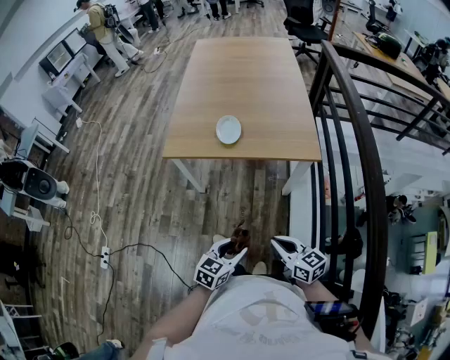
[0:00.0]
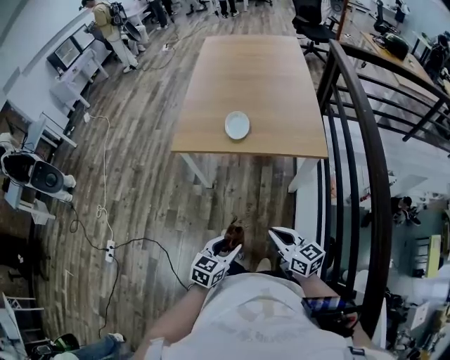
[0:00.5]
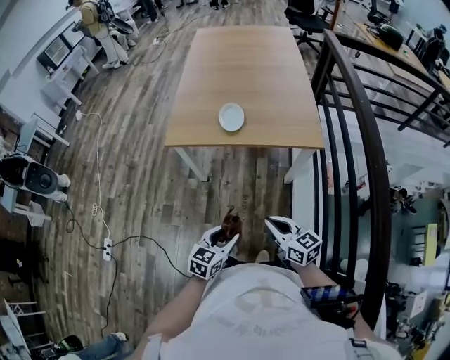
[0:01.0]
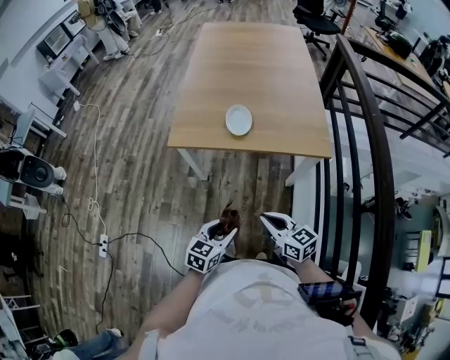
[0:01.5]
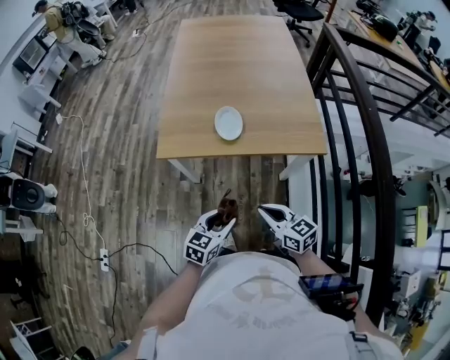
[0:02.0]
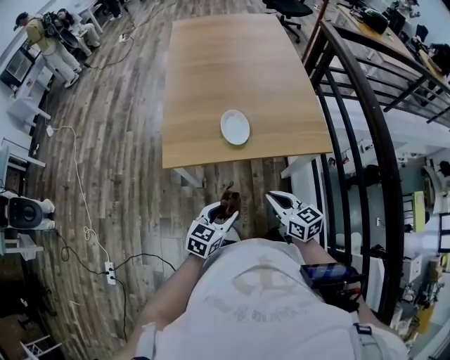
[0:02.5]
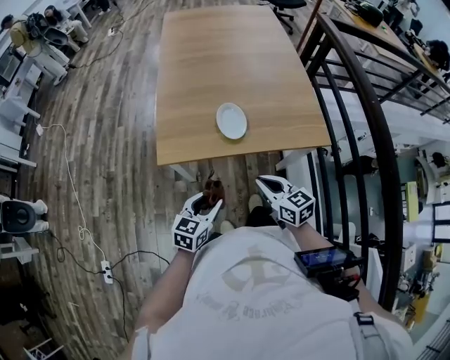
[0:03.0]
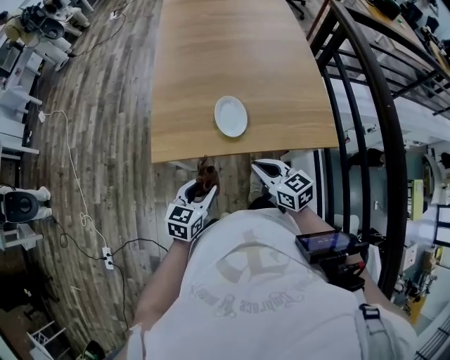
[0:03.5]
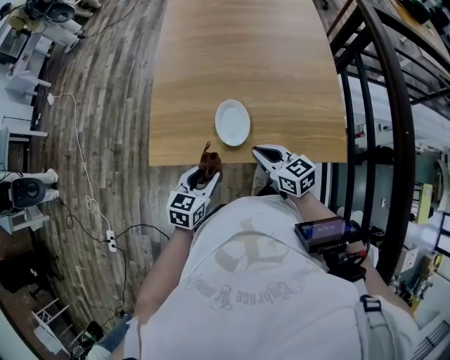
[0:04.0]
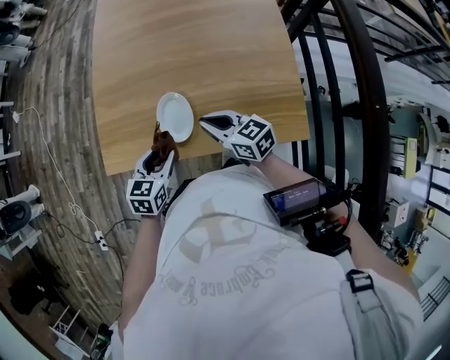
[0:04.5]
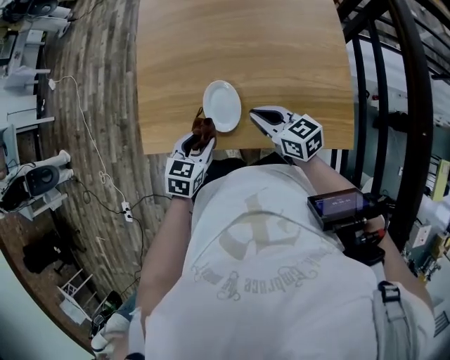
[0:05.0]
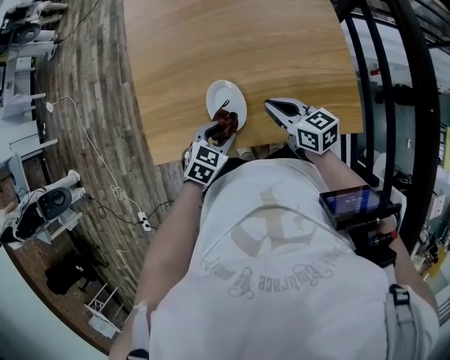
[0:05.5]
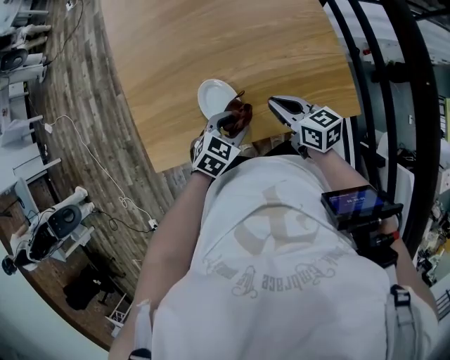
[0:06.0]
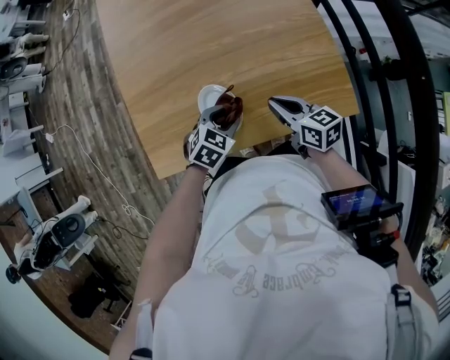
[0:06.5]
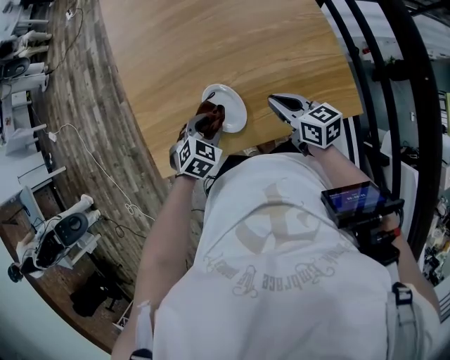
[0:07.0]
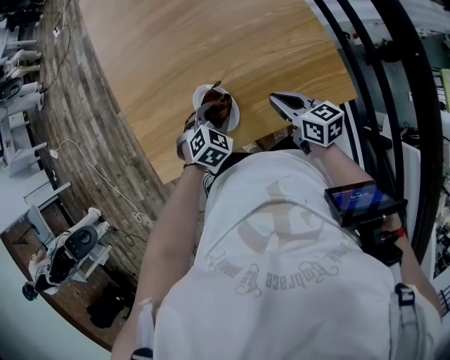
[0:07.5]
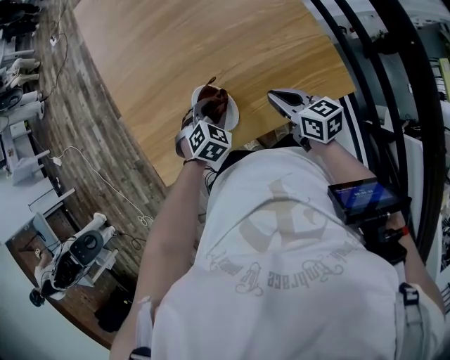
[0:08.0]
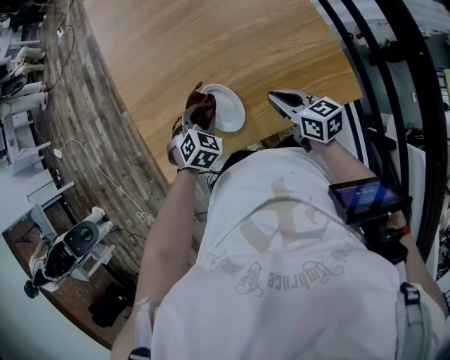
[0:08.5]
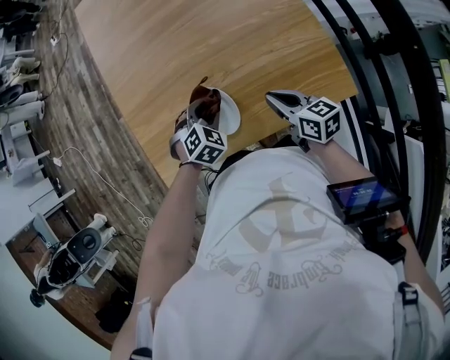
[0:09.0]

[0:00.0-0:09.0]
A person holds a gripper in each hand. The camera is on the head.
0:00.0 to 0:02.0: The grippers both shift forward and to the left by about 15 cm.
0:02.0 to 0:04.5: The grippers both shift forward by roughly 30 cm.
0:04.5 to 0:07.0: The right gripper ends up roughly 10 cm from where it was, and rotates approximately 30 degrees. The left gripper ends up roughly 10 cm from where it was, and rolls clockwise, seen from behind, by approximately 40 degrees.
0:07.0 to 0:09.0: The left gripper goes left and right, about 5 cm each way, reversing 2 times.

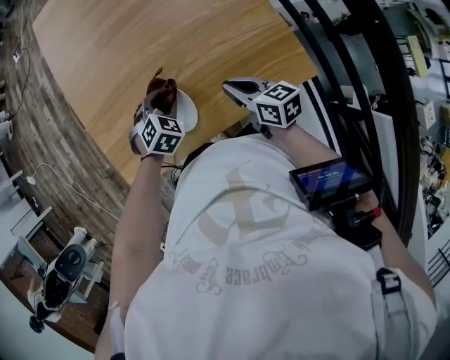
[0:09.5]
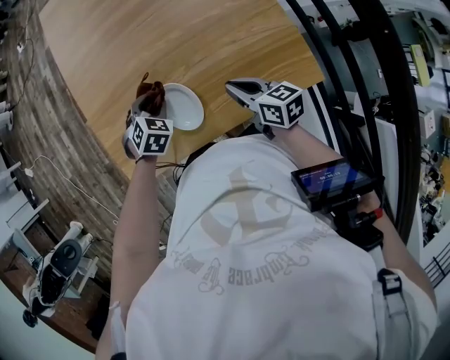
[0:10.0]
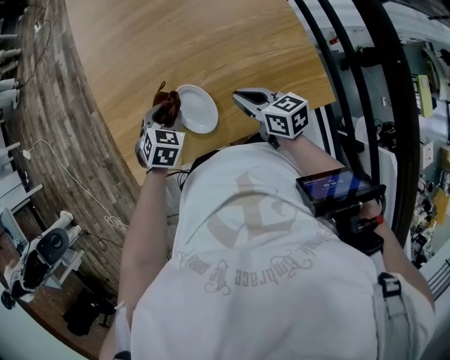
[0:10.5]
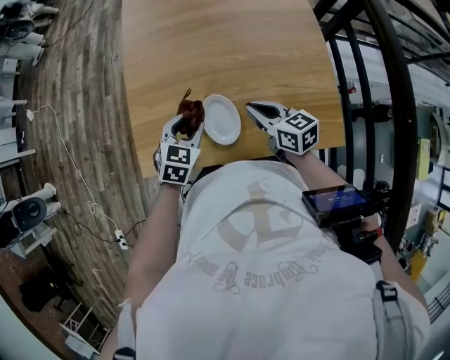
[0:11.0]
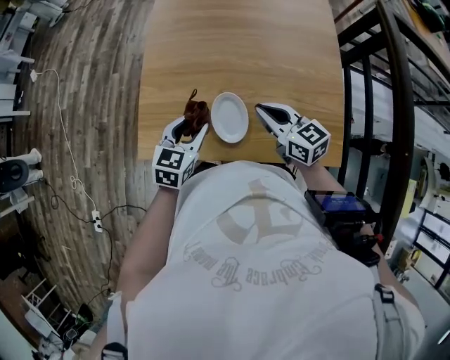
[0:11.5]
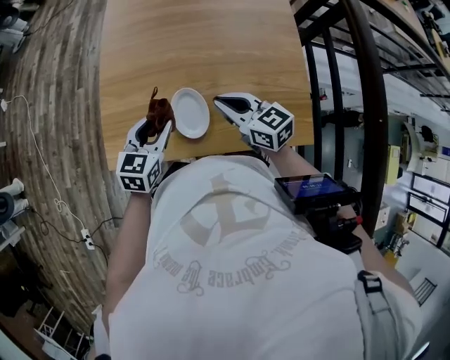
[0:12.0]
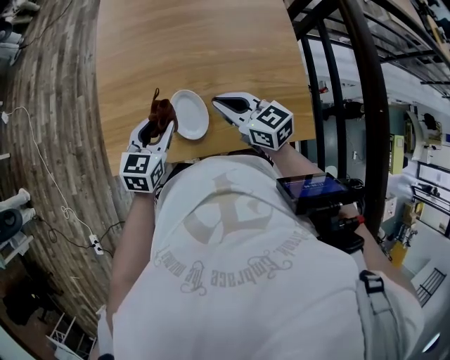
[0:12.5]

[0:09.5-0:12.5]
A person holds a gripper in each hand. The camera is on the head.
0:09.5 to 0:11.0: The right gripper is displaced to the left and forward by some 10 cm, and turns by roughly 20 degrees; the left gripper shifts approximately 10 cm to the left and upward, and swivels roughly 40 degrees.

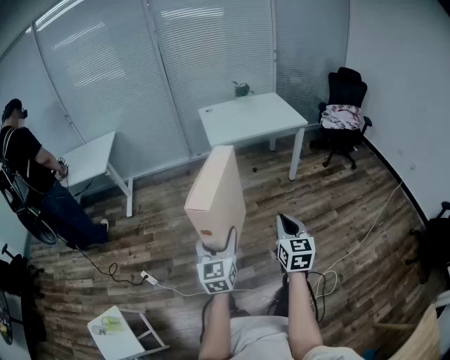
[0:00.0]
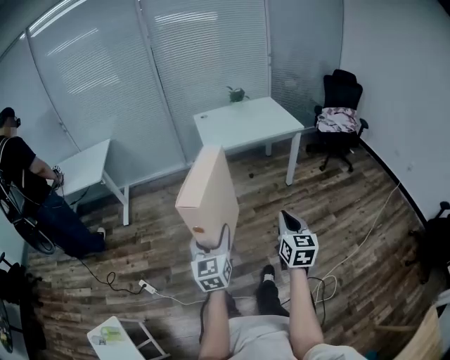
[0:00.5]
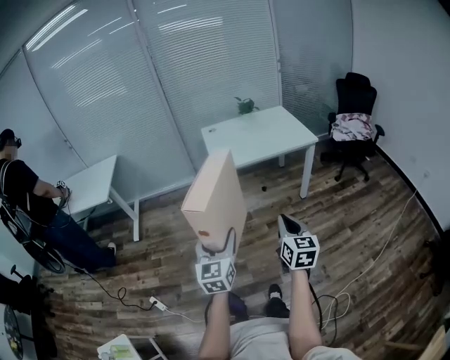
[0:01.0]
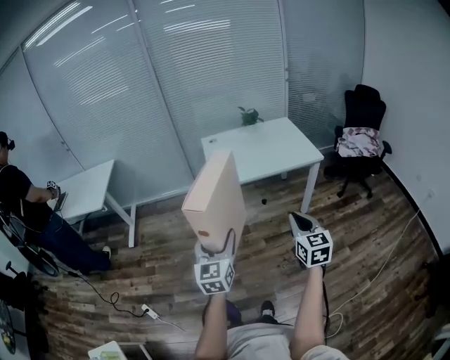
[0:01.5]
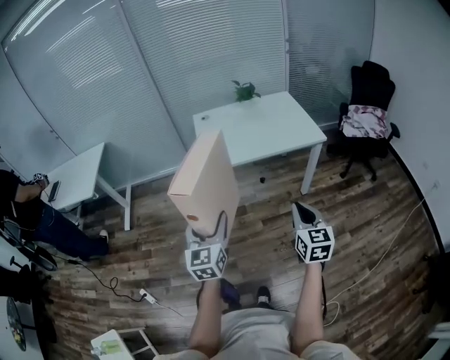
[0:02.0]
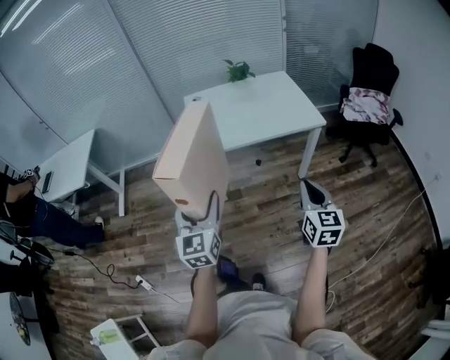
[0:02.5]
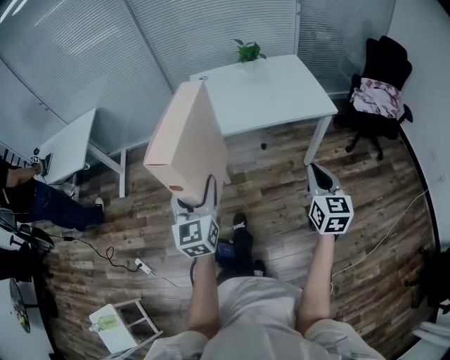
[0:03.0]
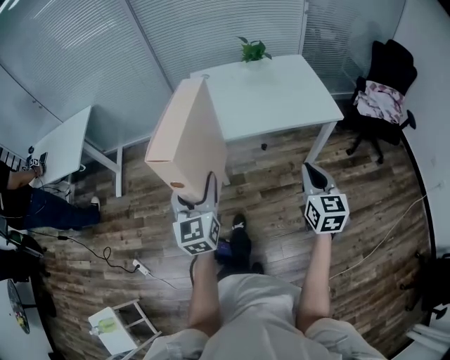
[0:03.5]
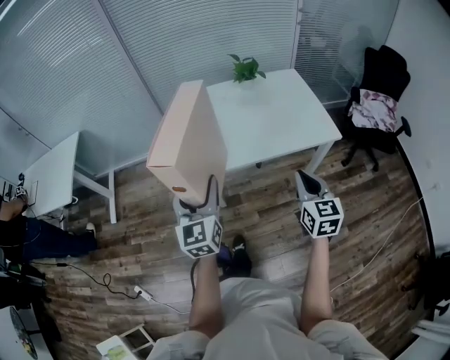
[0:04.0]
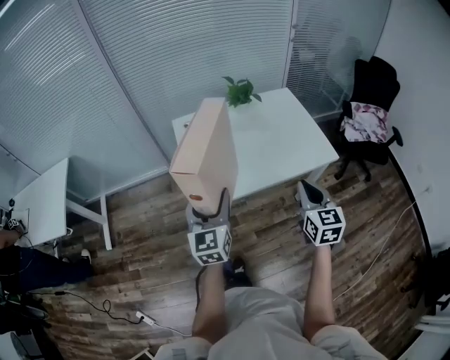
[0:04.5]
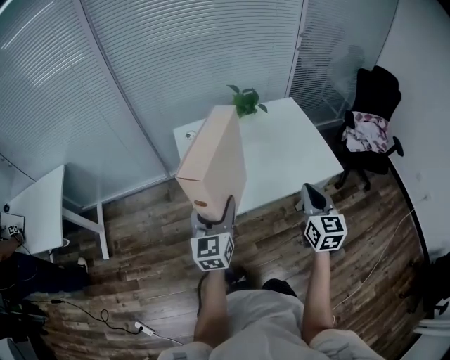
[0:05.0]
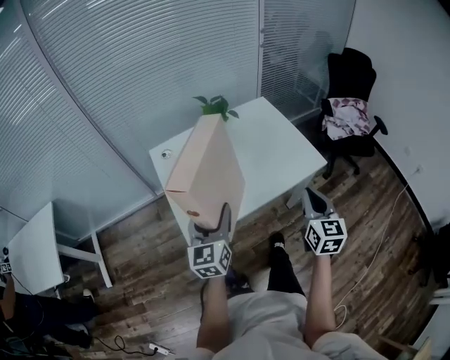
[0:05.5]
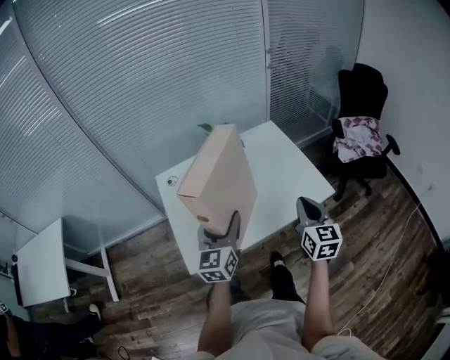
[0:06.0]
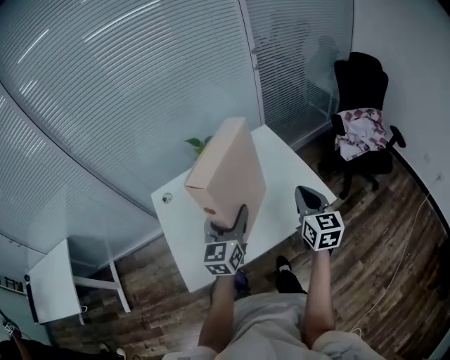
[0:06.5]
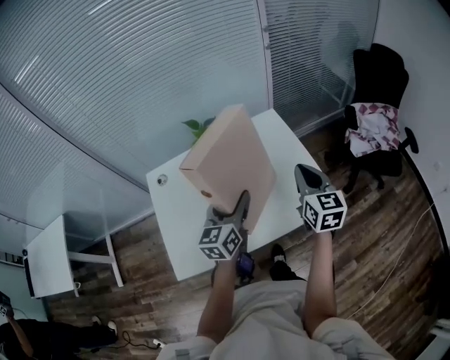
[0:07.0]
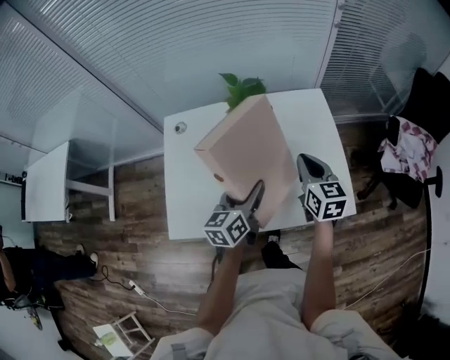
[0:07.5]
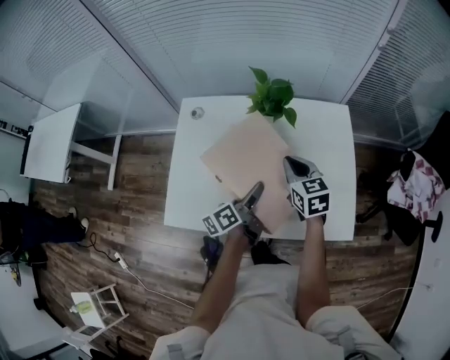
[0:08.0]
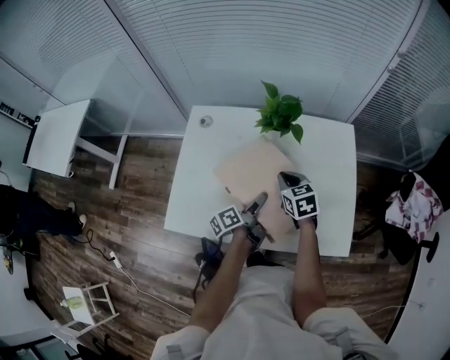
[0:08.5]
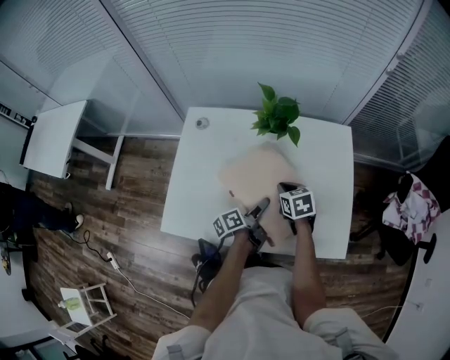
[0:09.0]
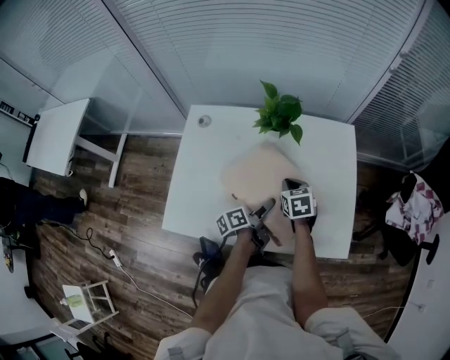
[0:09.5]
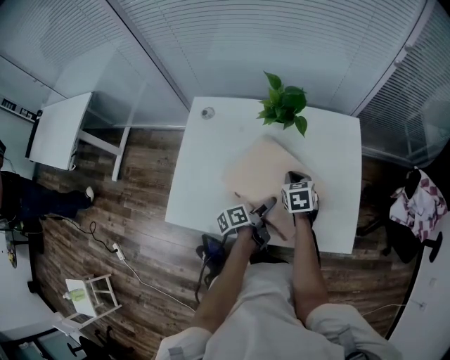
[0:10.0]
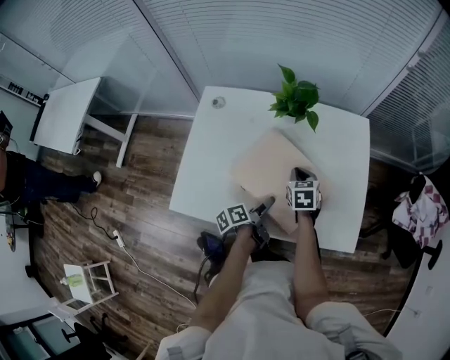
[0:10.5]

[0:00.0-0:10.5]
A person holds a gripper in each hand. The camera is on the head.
0:00.0 to 0:02.0: The grippers both shift forward by approximately 35 cm.
0:02.0 to 0:04.0: The grippers both shift forward by roughly 25 cm.
0:04.0 to 0:06.5: The right gripper shifts roughly 30 cm forward; the left gripper heads forward and to the right, covering about 40 cm, and changes its angle by some 30 degrees.
0:06.5 to 0:08.5: The right gripper changes place by roughly 30 cm, and rotates about 60 degrees, while the left gripper heads downward, covering some 25 cm, and twists about 80 degrees counterclockwise, seen from behind.
0:08.5 to 0:10.5: The right gripper is displaced downward by some 5 cm; the left gripper heads backward and downward, covering about 10 cm.

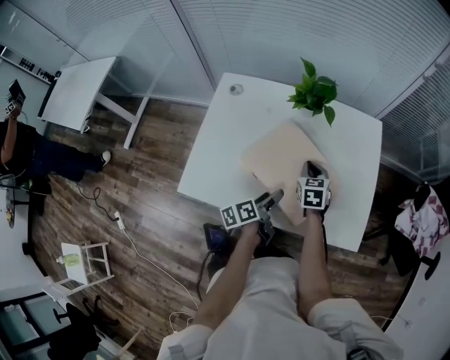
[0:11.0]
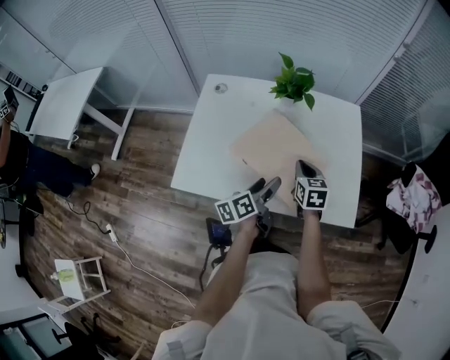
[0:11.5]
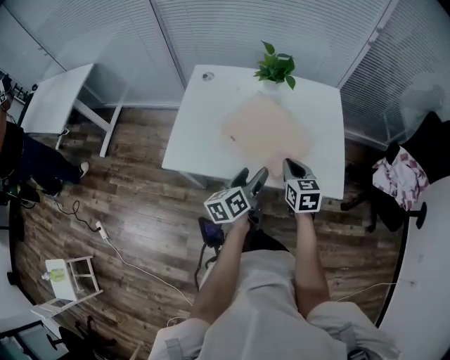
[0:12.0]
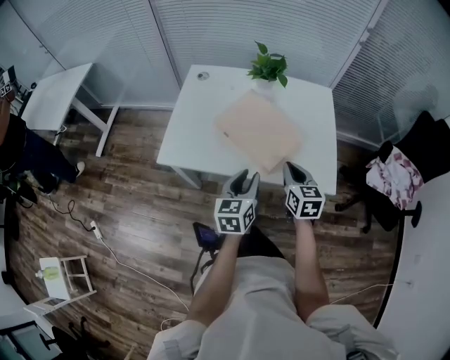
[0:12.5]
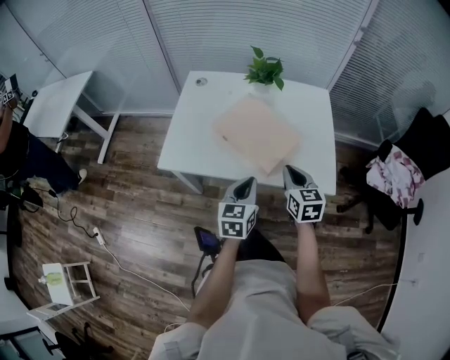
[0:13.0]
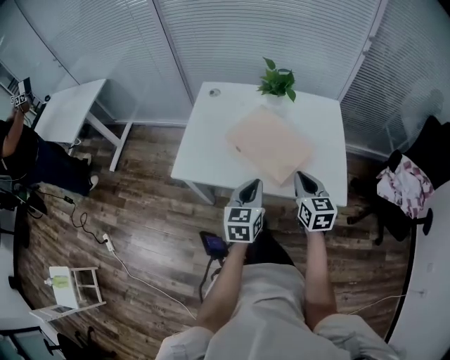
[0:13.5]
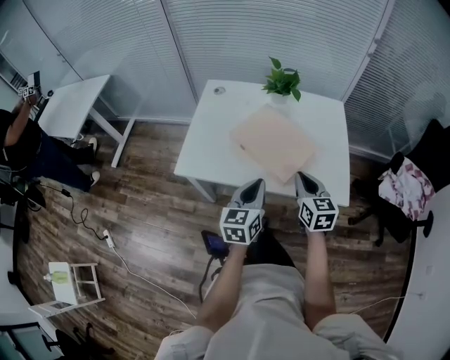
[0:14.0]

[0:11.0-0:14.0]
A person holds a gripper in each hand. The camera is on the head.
0:11.0 to 0:12.5: Both grippers move backward and upward, about 20 cm. The left gripper rolls clockwise, seen from behind, by approximately 50 degrees, and closes.
0:12.5 to 0:14.0: The left gripper closes its fingers.

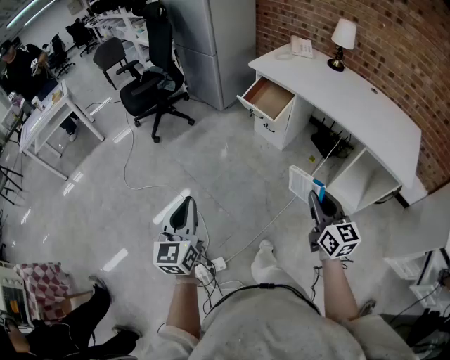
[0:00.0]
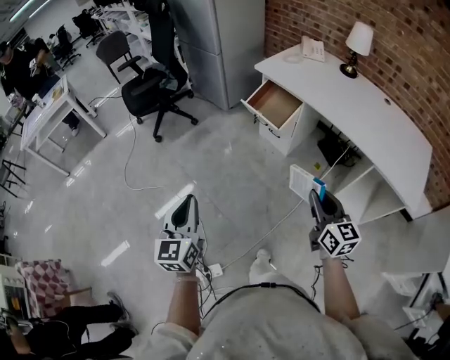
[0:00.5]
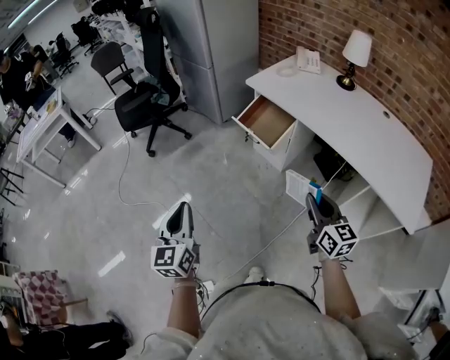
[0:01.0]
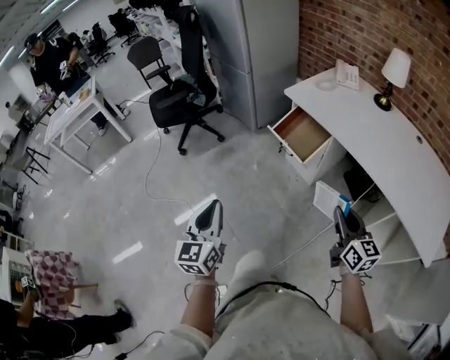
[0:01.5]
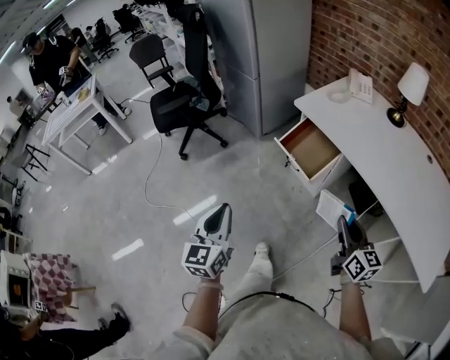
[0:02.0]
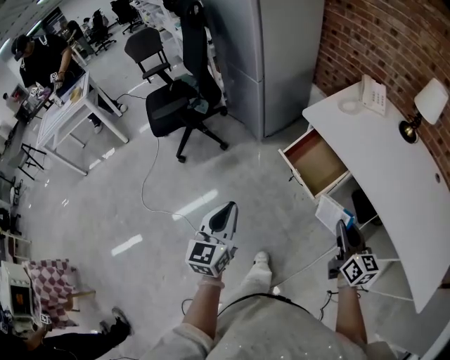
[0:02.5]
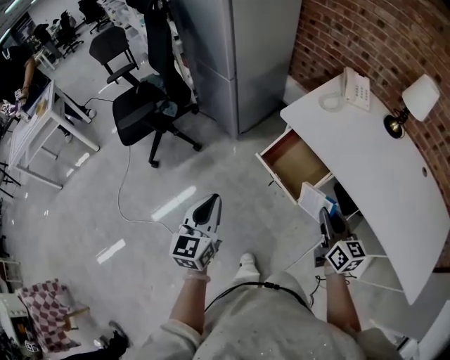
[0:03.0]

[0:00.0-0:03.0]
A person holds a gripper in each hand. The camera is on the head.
0:00.0 to 0:01.5: Both grippers travel together forward and to the right, approximately 25 cm.
0:01.5 to 0:03.0: The grippers both shift forward by roughly 30 cm.
